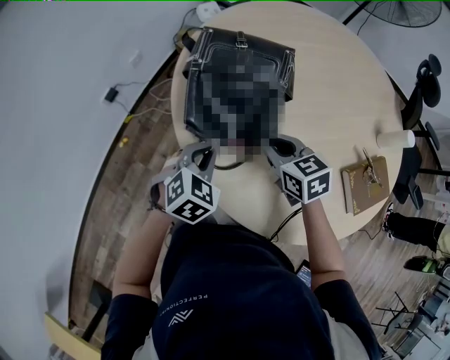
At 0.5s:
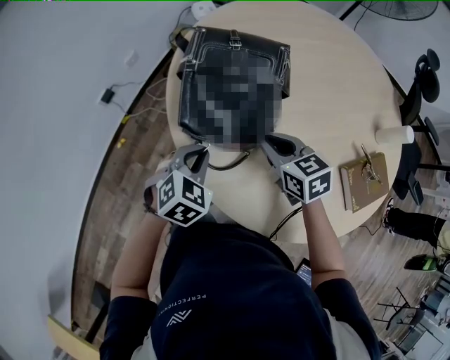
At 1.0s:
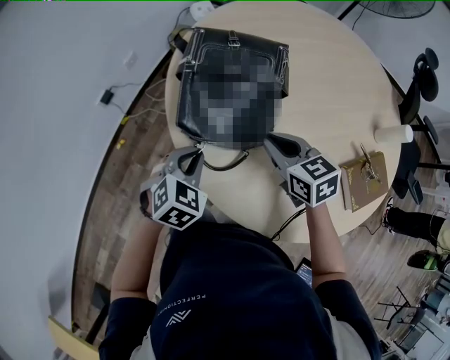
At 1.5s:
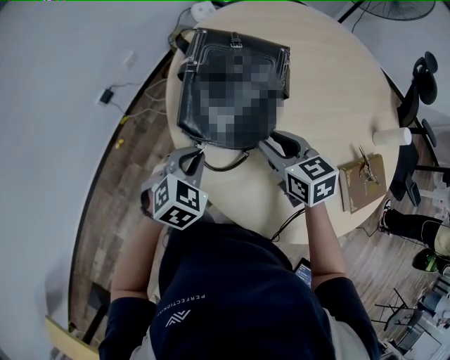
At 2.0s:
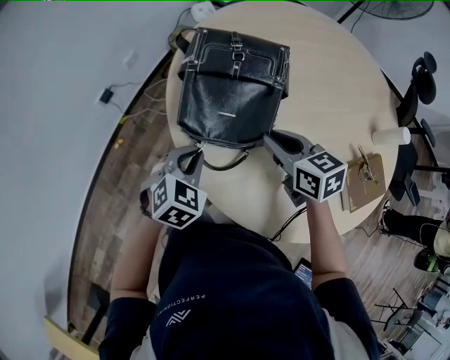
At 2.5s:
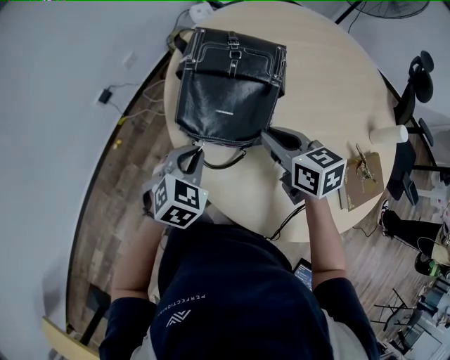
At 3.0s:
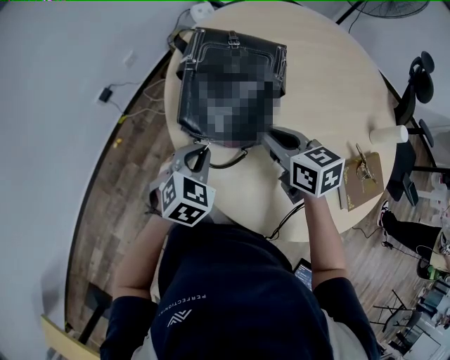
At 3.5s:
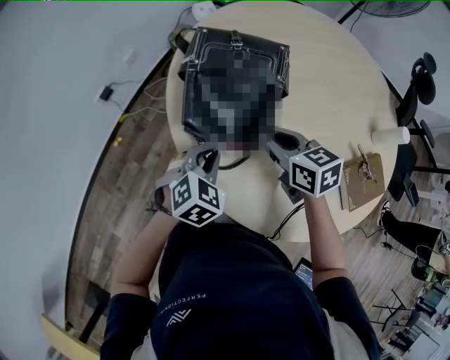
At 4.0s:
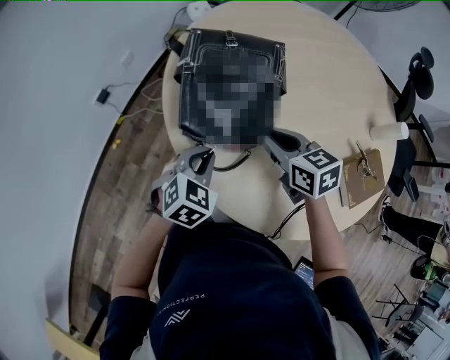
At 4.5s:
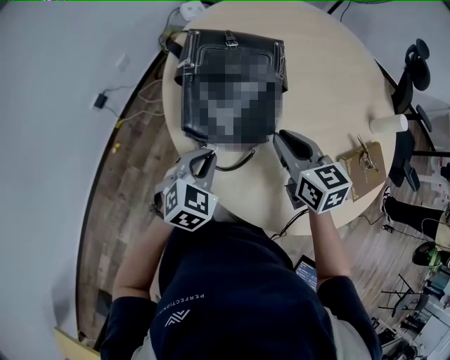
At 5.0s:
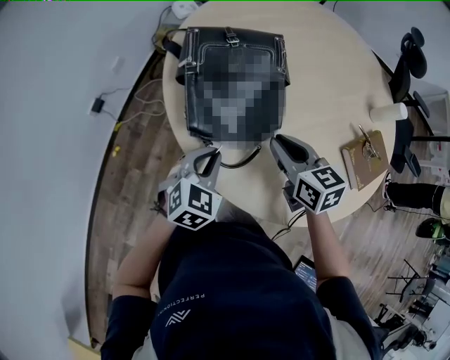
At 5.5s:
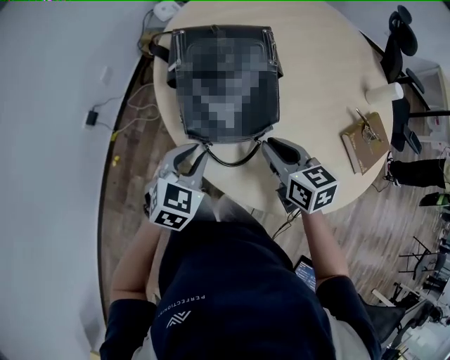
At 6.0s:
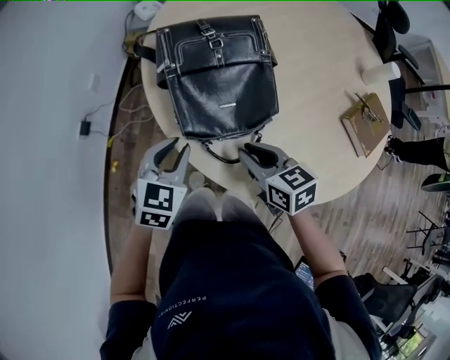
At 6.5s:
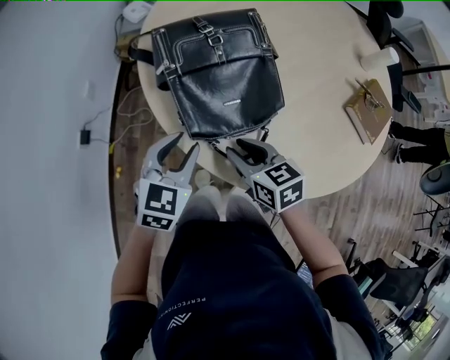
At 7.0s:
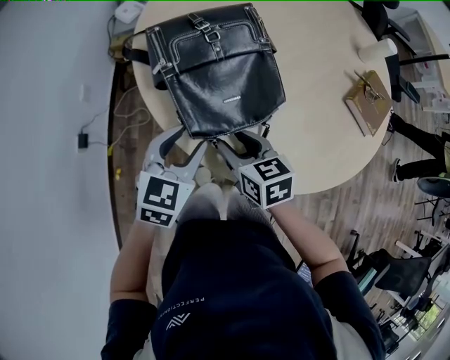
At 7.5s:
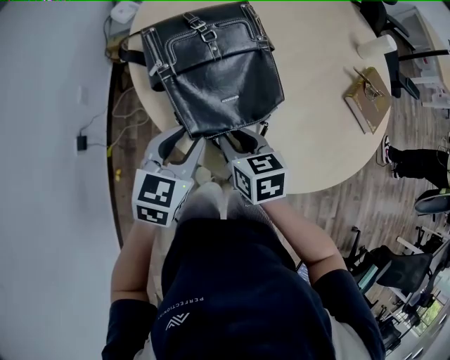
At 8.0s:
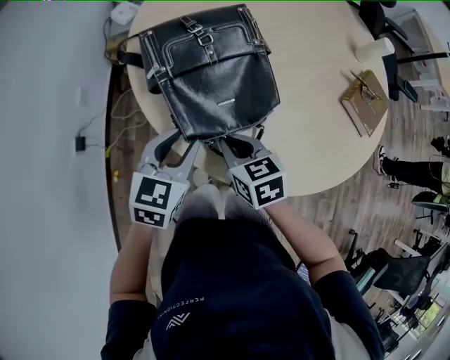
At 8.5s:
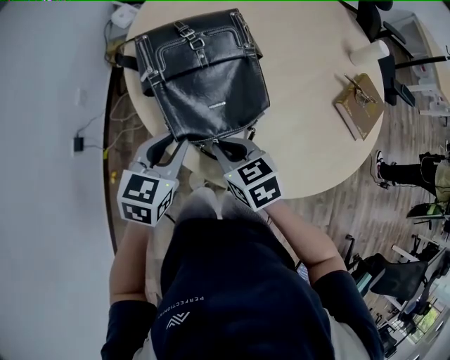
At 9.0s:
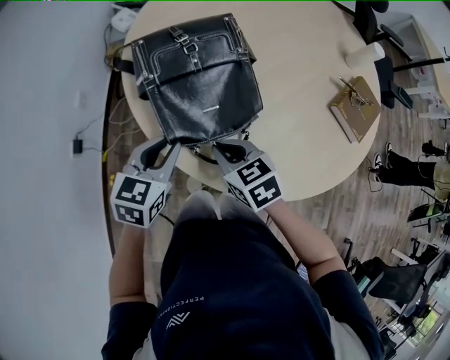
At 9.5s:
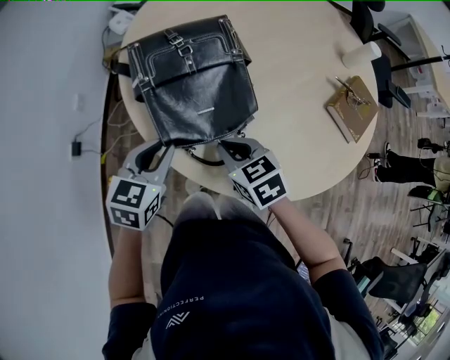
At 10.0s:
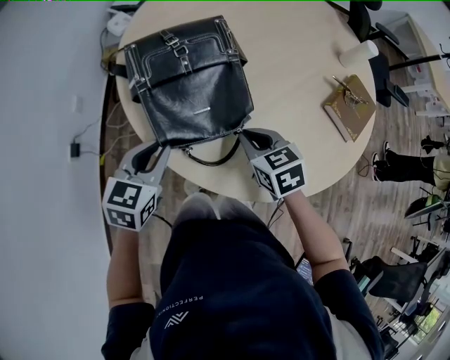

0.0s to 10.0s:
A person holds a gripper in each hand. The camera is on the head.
0.0s to 4.0s: There are only small adjustments of the grippers.
4.0s to 6.0s: The right gripper goes roughly 10 cm to the left and backward. Meanwhile the left gripper is displaced to the left by some 10 cm.
6.0s to 8.0s: The right gripper travels to the left by approximately 5 cm, and opens and closes again.
8.0s to 10.0s: The right gripper shifts approximately 10 cm to the right.

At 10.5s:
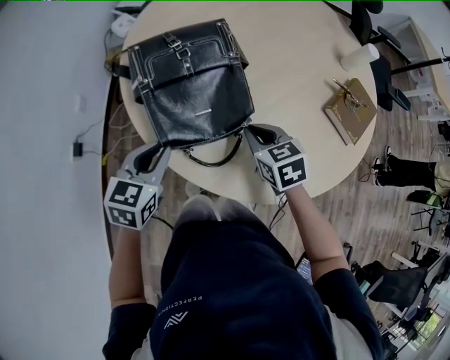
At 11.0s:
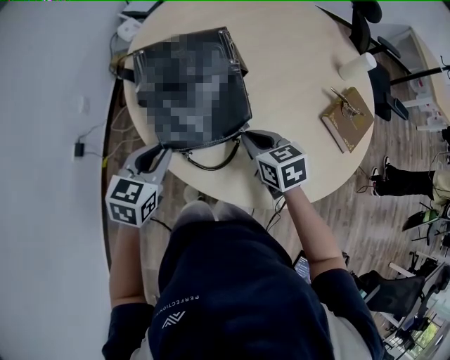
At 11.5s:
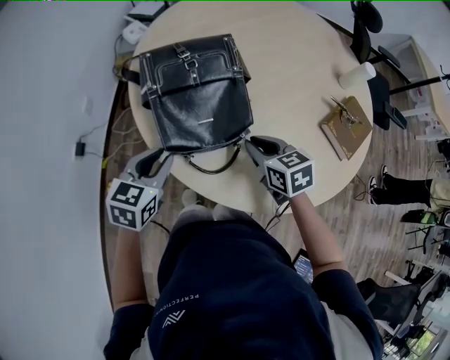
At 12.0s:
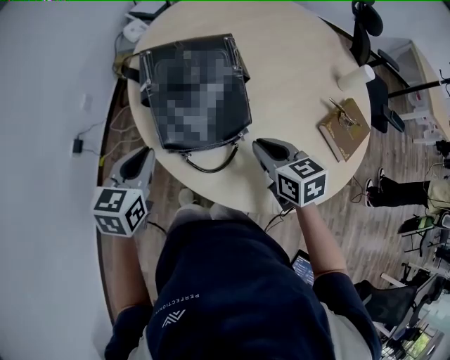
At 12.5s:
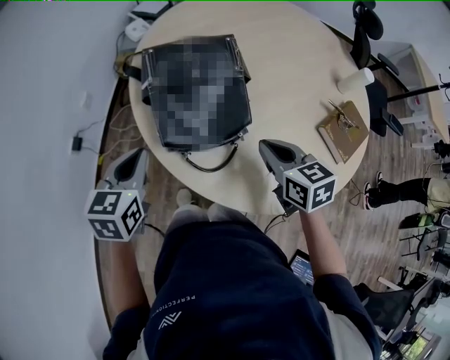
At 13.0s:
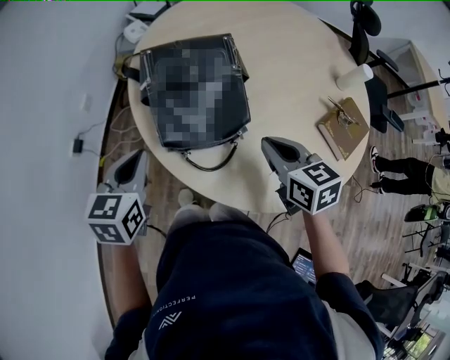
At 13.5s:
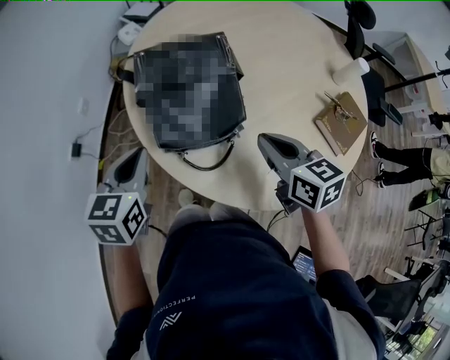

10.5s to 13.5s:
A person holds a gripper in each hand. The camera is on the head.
10.5s to 12.0s: The right gripper shifts by approximately 5 cm.
12.0s to 13.5s: The right gripper goes roughly 5 cm upward.

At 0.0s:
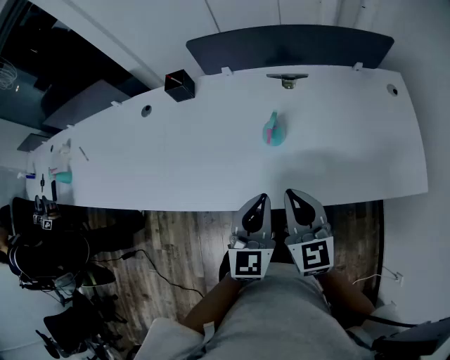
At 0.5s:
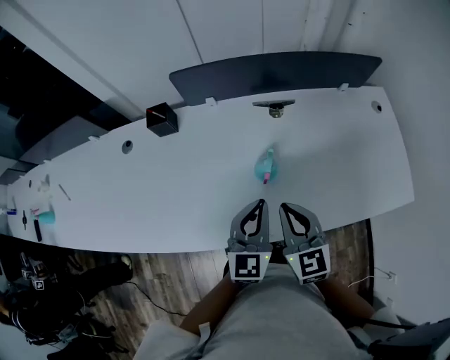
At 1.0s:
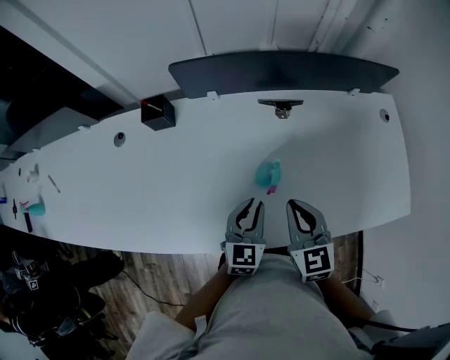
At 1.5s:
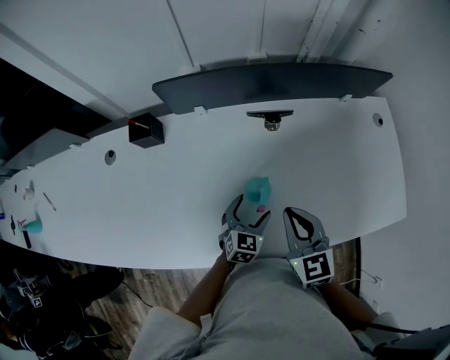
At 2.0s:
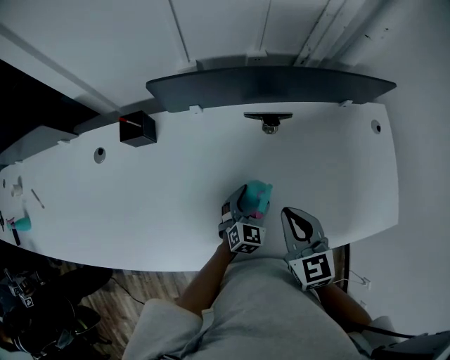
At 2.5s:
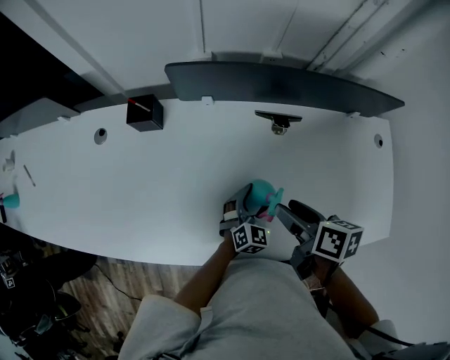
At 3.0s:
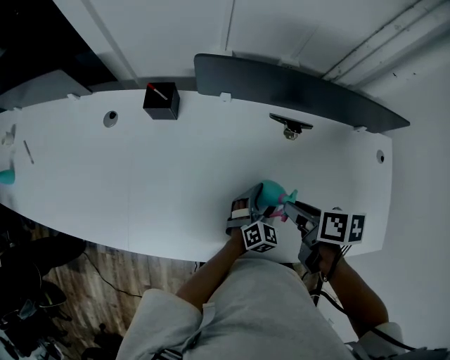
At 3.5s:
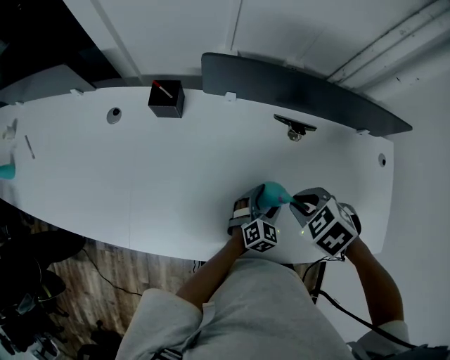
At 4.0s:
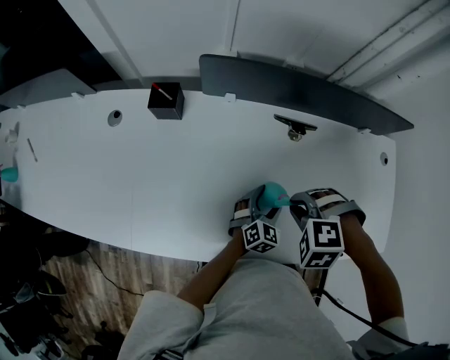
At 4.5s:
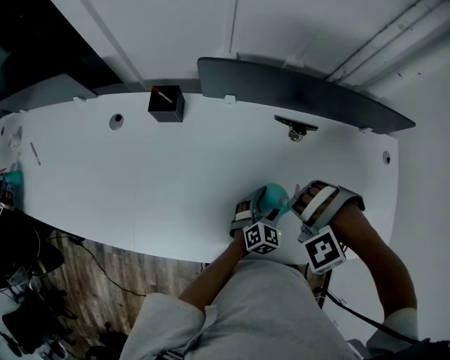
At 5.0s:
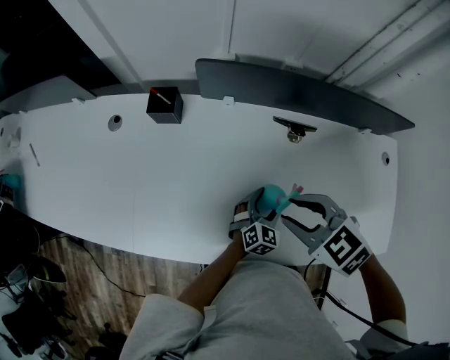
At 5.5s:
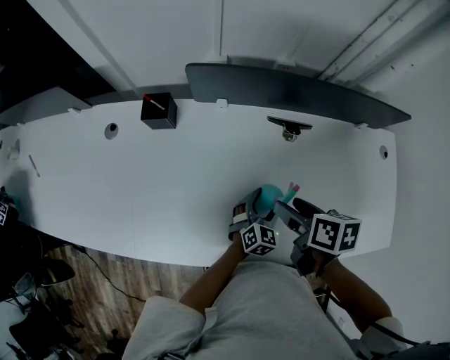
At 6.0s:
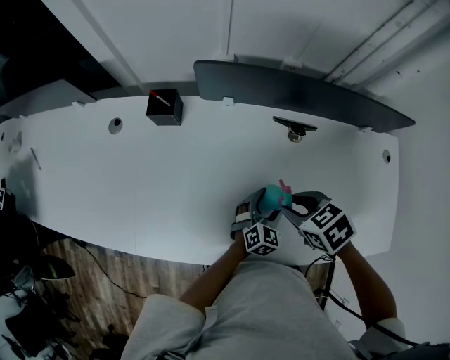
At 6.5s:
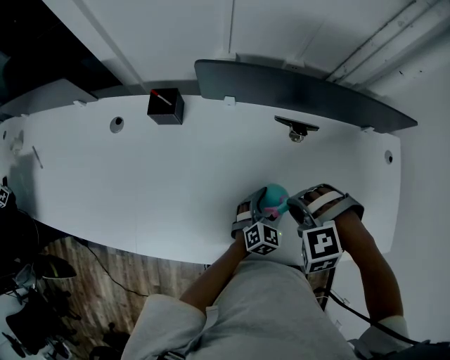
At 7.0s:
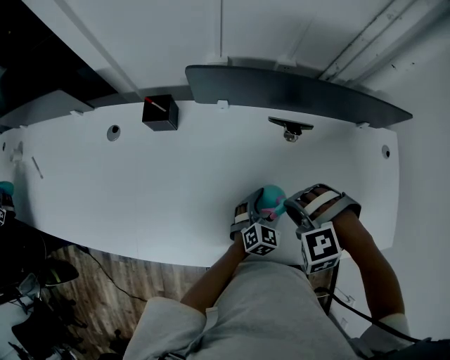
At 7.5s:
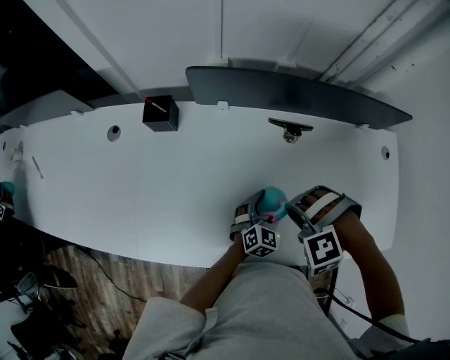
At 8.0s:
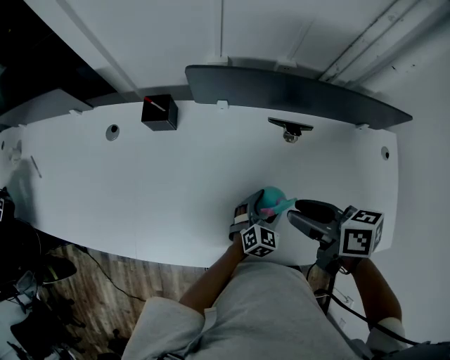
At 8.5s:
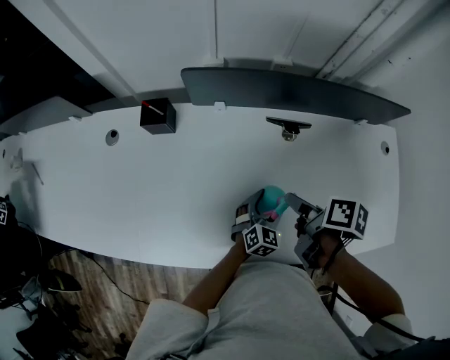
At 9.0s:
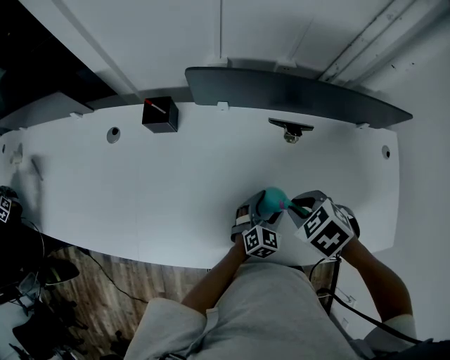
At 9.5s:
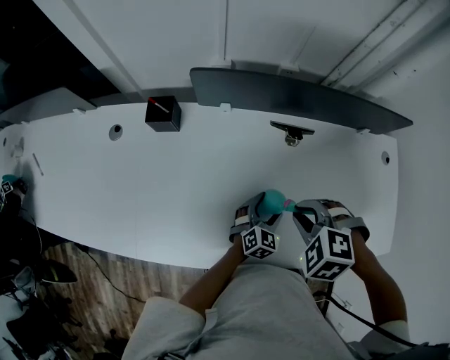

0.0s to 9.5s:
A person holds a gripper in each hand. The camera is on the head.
0.0s to 2.0s: The right gripper heads forward, covering approximately 20 cm. The left gripper travels forward and downward by about 30 cm, swivels some 30 degrees, and opens up.
2.0s to 4.0s: The right gripper changes place by about 5 cm, points its fingers roughly 50 degrees further downward, and opens, then closes once more.
4.0s to 5.5s: The right gripper rolls clockwise, seen from behind, by approximately 100 degrees, and opens.
5.5s to 7.5s: The right gripper rolls counterclockwise, seen from behind, by some 130 degrees, and closes up.
7.5s to 9.5s: The right gripper changes its angle by some 40 degrees, and opens, then closes once more.

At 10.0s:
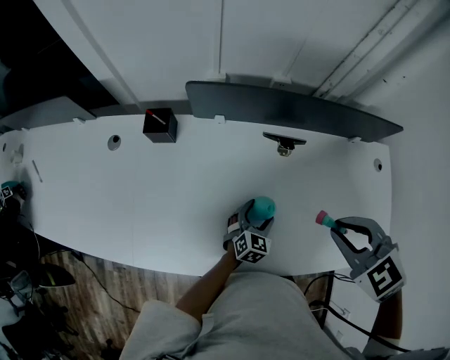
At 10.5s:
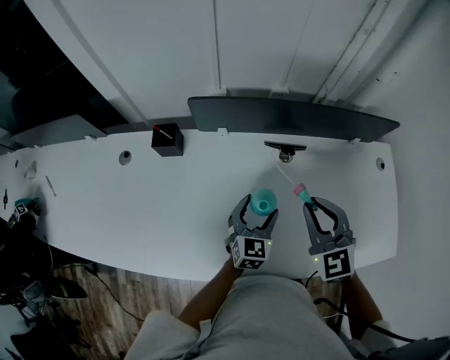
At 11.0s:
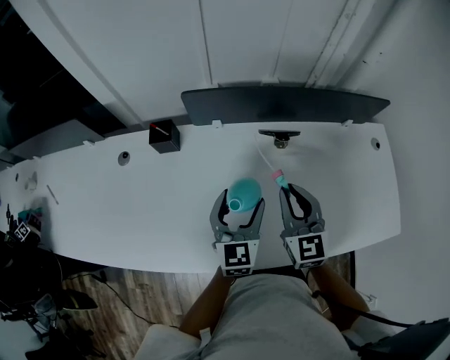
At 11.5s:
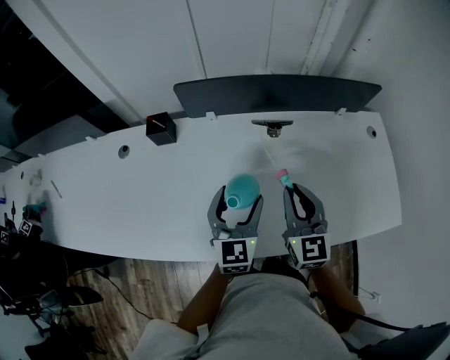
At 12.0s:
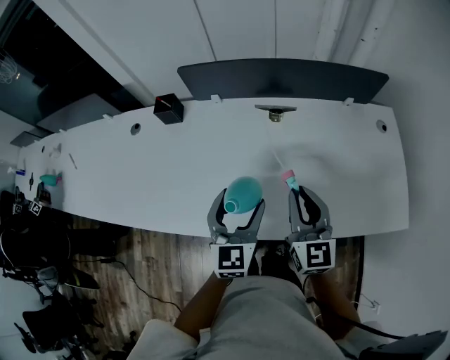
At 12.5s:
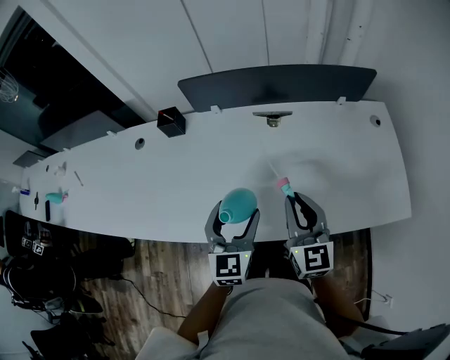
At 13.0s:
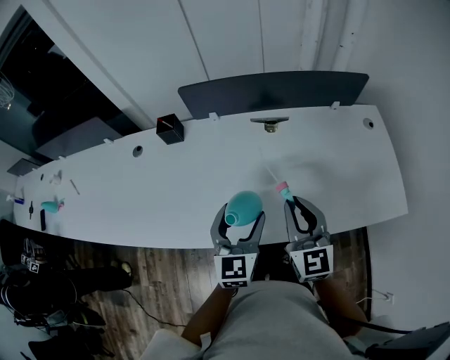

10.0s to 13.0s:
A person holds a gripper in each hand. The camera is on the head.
10.0s to 11.5s: The right gripper heads downward, covering approximately 5 cm, and angles its fingers upward, by some 40 degrees; the left gripper shifts some 20 cm upward, and turns by about 30 degrees.
11.5s to 13.0s: Both grippers move backward, some 10 cm.

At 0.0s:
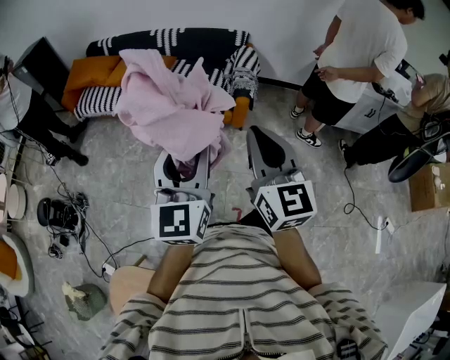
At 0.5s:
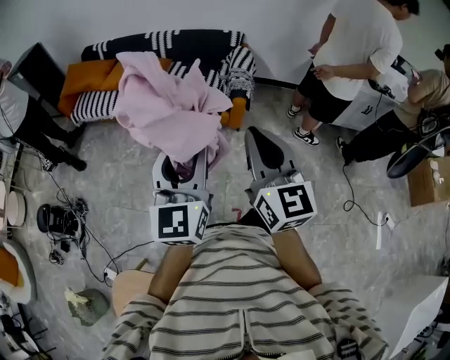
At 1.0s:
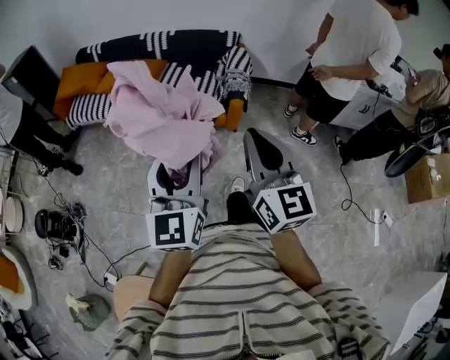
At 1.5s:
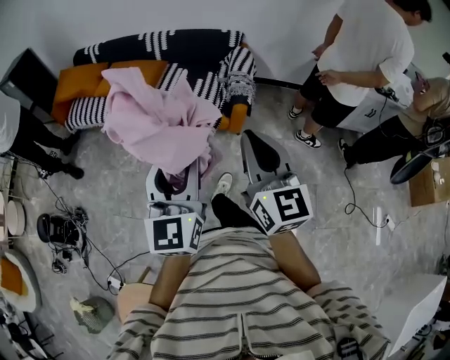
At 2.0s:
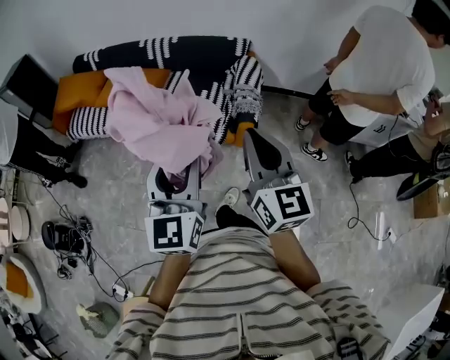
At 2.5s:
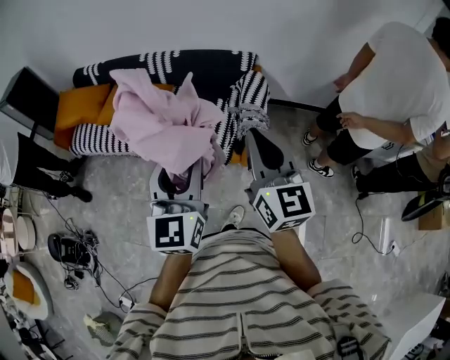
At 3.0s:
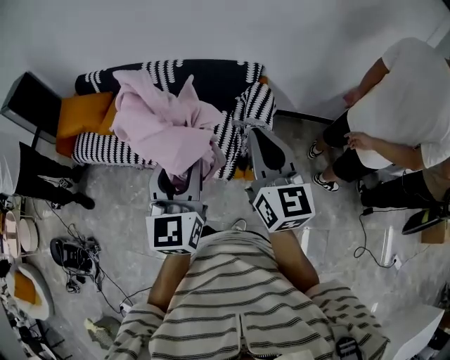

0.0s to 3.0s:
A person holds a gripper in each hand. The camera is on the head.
0.0s to 1.5s: The two grippers go approximately 10 cm forward.
1.5s to 3.0s: Both grippers travel together forward, roughly 35 cm.
